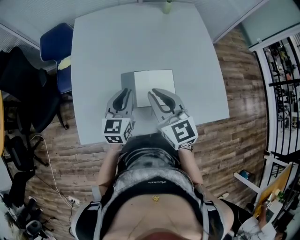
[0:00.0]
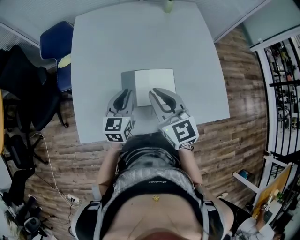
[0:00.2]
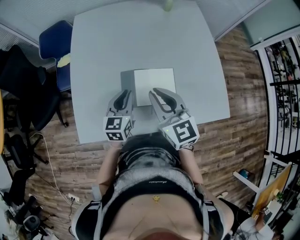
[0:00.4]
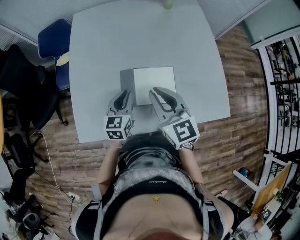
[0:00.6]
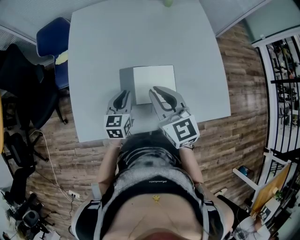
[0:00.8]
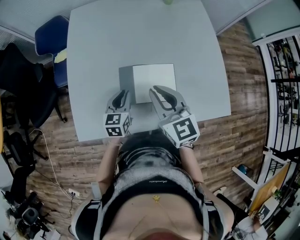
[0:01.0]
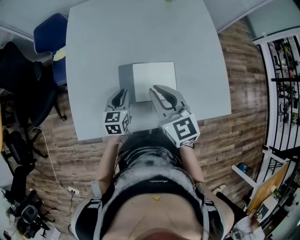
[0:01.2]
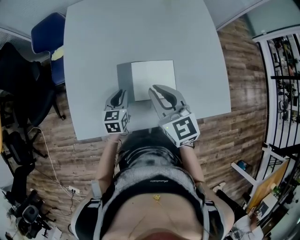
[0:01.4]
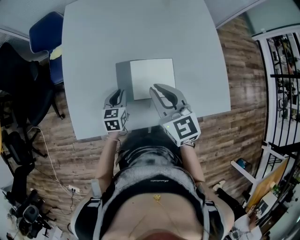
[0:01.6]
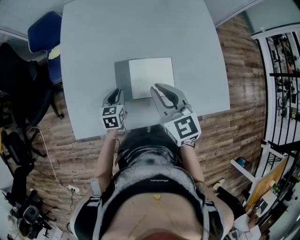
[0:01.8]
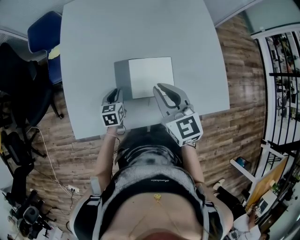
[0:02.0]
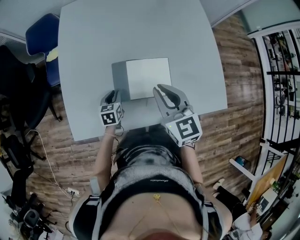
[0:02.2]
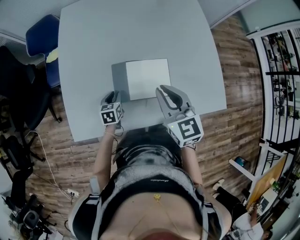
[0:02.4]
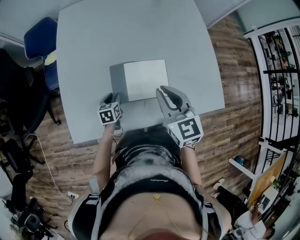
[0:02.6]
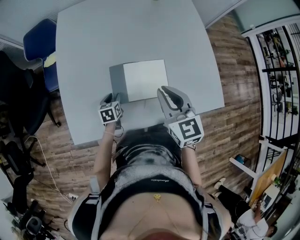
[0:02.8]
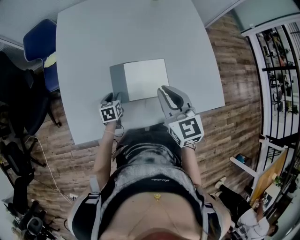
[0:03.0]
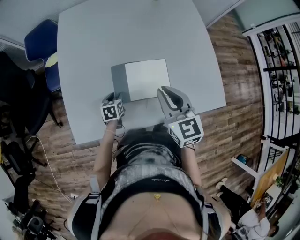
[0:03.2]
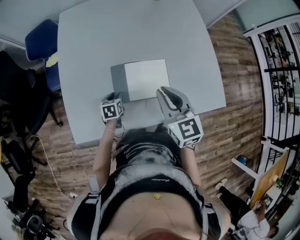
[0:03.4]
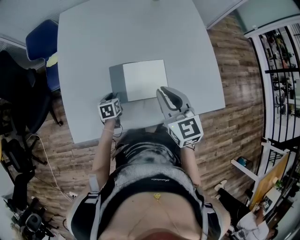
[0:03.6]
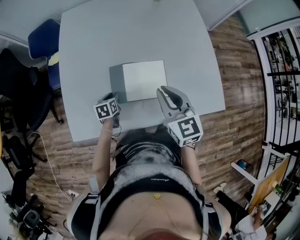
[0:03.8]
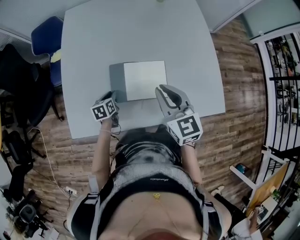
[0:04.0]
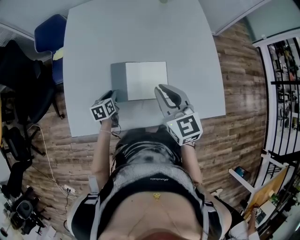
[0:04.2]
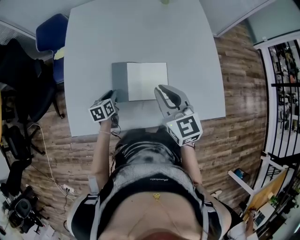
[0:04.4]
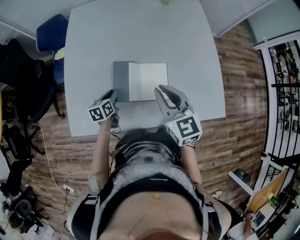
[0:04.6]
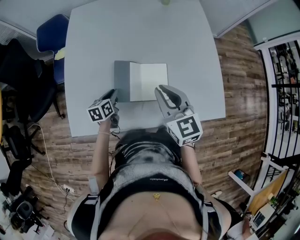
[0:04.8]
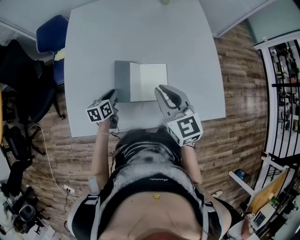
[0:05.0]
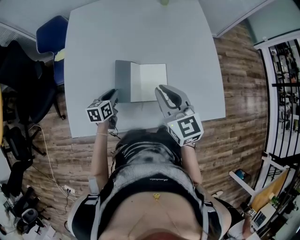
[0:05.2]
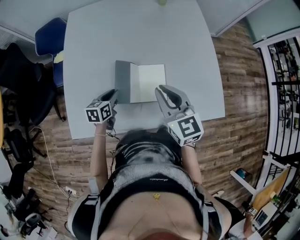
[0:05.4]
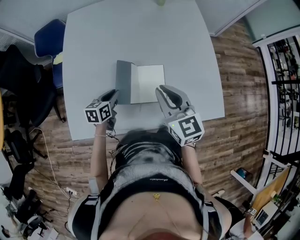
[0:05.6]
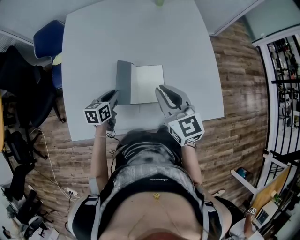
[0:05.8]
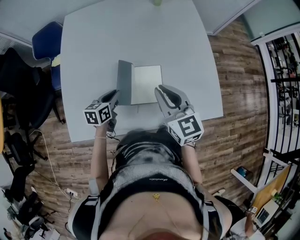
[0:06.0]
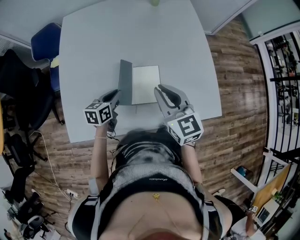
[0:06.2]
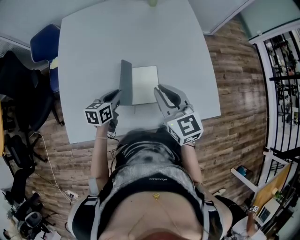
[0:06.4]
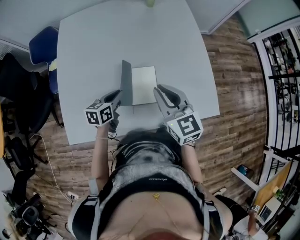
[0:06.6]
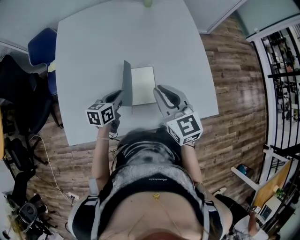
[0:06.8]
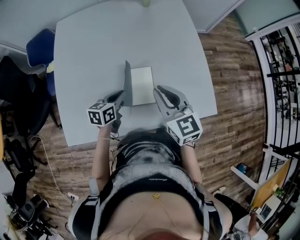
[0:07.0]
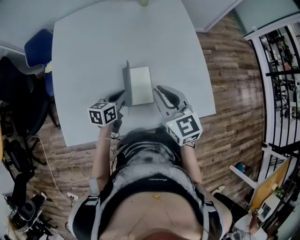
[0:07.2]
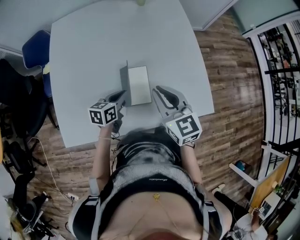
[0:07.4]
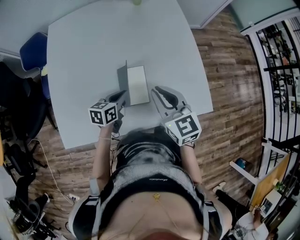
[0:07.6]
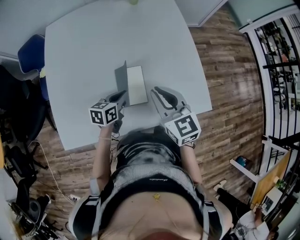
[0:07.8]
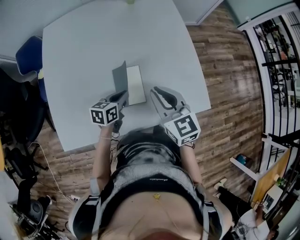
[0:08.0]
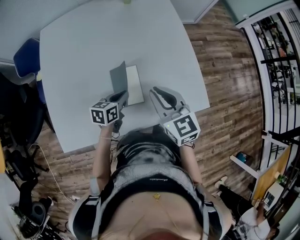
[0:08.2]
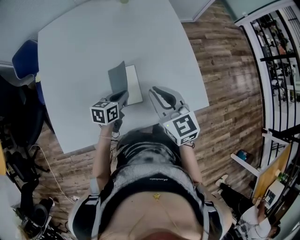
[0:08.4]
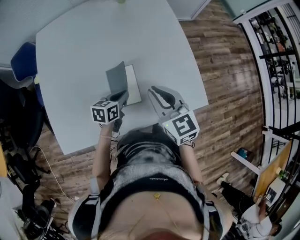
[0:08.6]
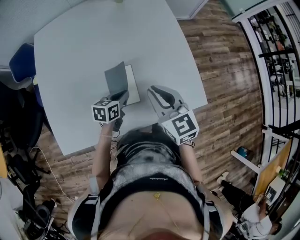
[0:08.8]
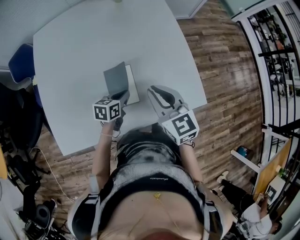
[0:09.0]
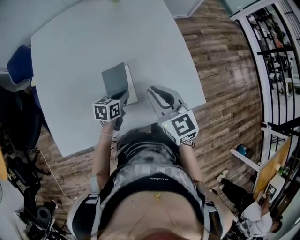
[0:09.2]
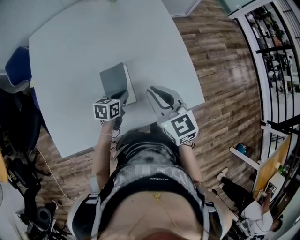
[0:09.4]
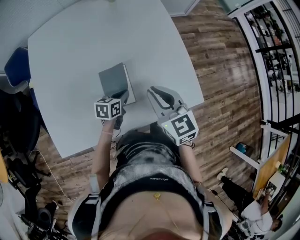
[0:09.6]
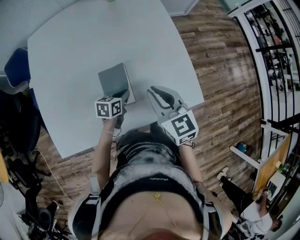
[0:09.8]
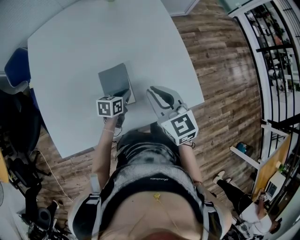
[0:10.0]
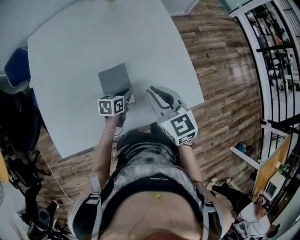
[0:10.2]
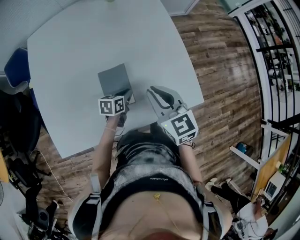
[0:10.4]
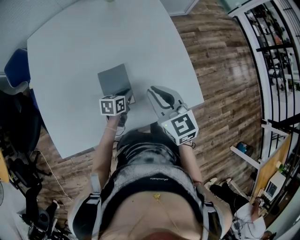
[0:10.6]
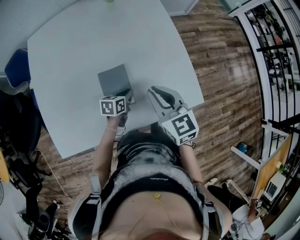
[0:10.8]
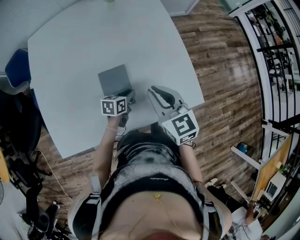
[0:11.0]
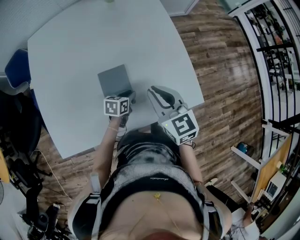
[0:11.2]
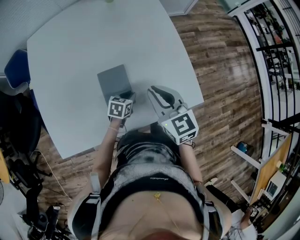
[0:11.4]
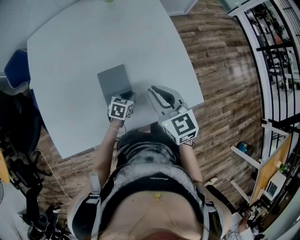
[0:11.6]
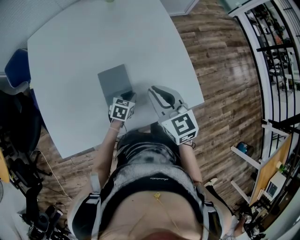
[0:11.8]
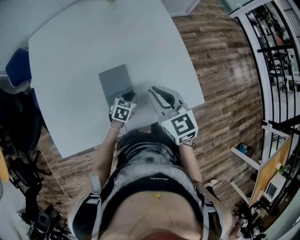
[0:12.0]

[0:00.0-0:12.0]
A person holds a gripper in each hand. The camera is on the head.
0:00.0 to 0:01.6: The right gripper ends up roughly 5 cm from where it was. The left gripper heads downward, covering about 15 cm, and swivels approximately 20 degrees.
0:01.6 to 0:03.0: The left gripper travels downward by some 5 cm, and opens up.
0:03.0 to 0:04.4: The grippers move only a little.
0:04.4 to 0:06.0: The left gripper goes roughly 10 cm upward and to the right.
0:06.0 to 0:07.6: The left gripper moves to the right, approximately 10 cm, while the right gripper moves to the right, roughly 5 cm.
0:07.6 to 0:09.0: The left gripper heads to the right, covering approximately 5 cm.
0:09.0 to 0:10.4: The left gripper shifts some 5 cm downward.
0:10.4 to 0:12.0: The left gripper rotates roughly 30 degrees.

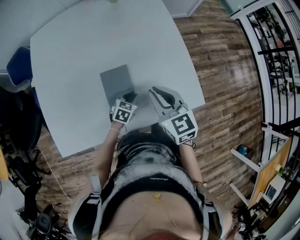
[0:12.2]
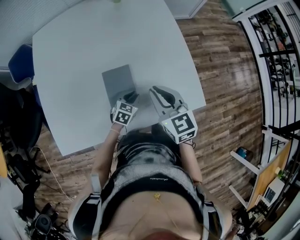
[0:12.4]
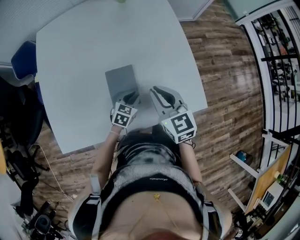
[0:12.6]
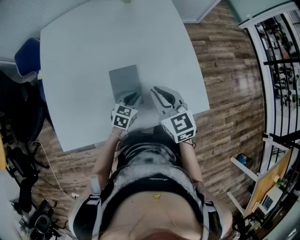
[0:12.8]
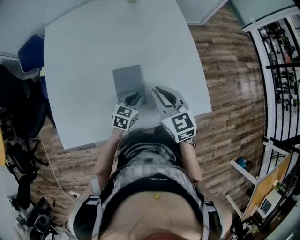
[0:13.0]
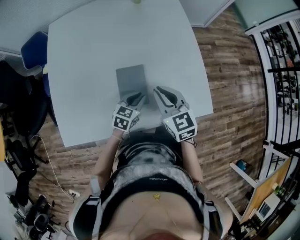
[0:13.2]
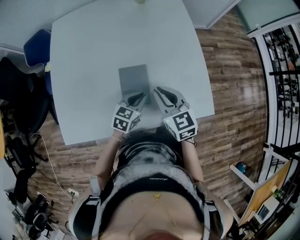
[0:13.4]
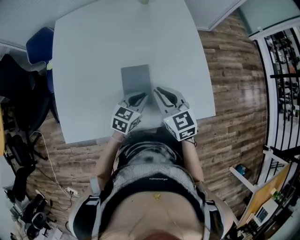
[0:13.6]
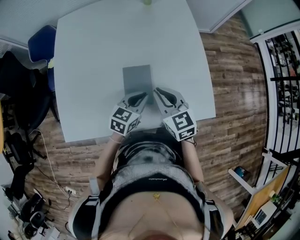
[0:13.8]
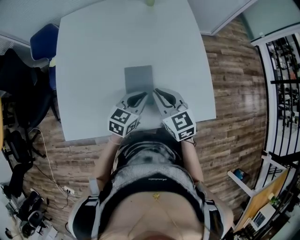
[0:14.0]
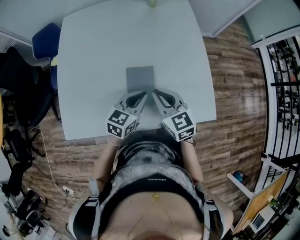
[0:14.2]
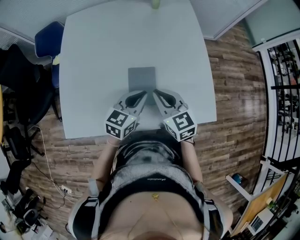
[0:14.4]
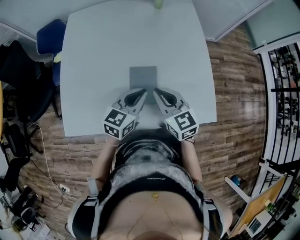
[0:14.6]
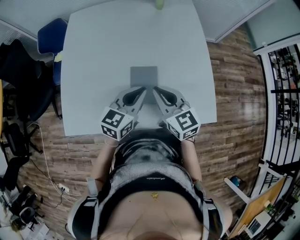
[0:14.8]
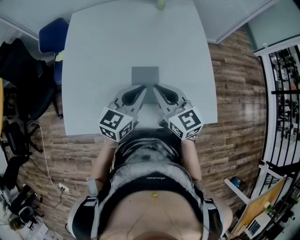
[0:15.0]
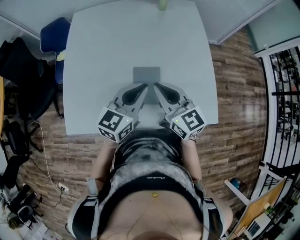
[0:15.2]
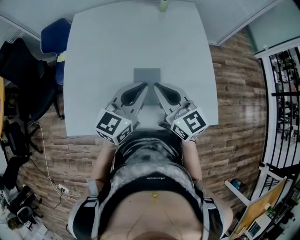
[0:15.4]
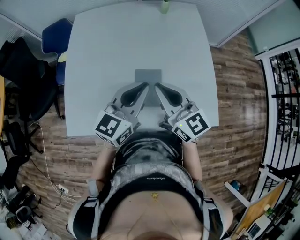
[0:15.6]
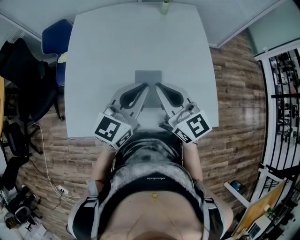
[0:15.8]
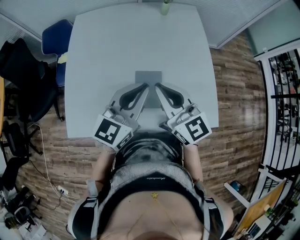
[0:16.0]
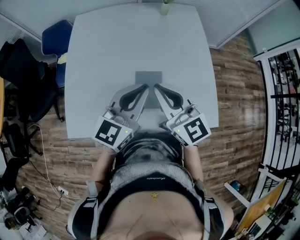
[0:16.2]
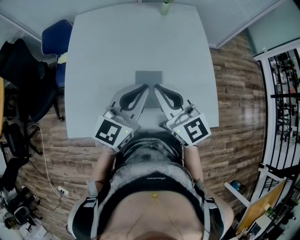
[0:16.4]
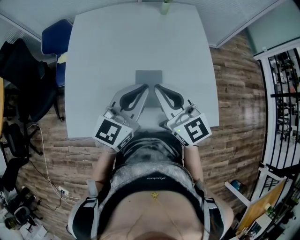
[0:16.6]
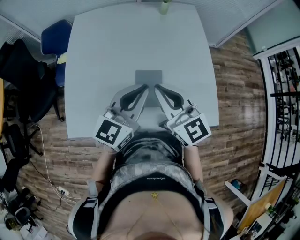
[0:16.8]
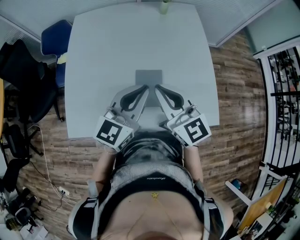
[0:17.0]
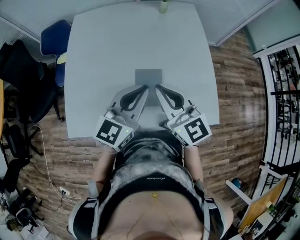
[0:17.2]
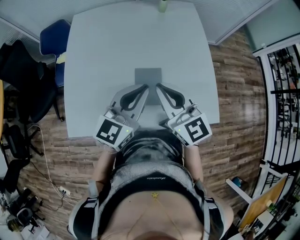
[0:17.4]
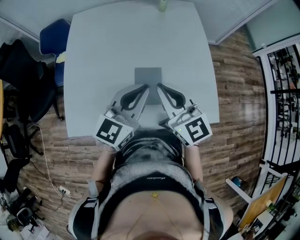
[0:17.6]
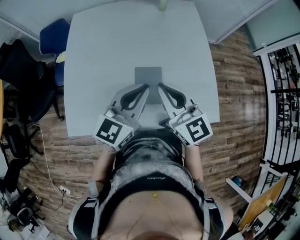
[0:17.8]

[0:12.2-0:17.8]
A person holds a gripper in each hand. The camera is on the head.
0:12.2 to 0:13.6: The right gripper goes approximately 5 cm to the left. Meanwhile the left gripper moves upward, roughly 15 cm.
0:13.6 to 0:15.0: The right gripper heads upward and to the left, covering about 10 cm. Meanwhile the left gripper heads upward, covering approximately 15 cm, and turns by approximately 20 degrees.
0:15.0 to 0:16.4: The two grippers go some 10 cm upward.
0:16.4 to 0:17.8: The grippers stay close to where they were, moving slightly.

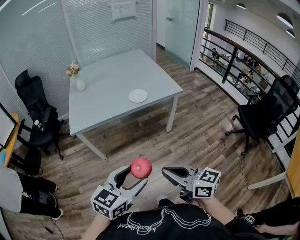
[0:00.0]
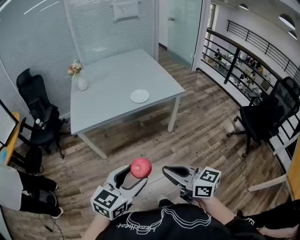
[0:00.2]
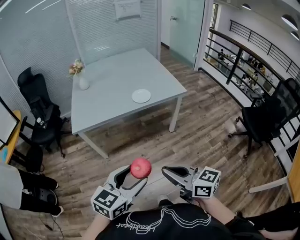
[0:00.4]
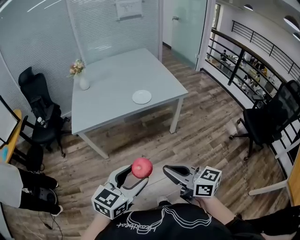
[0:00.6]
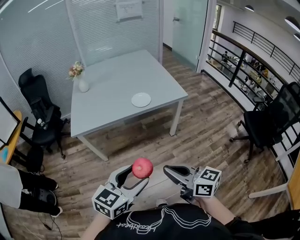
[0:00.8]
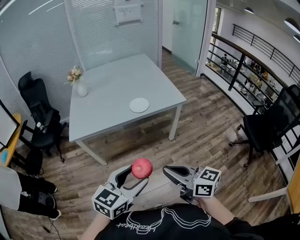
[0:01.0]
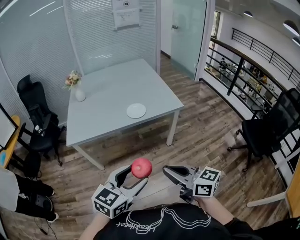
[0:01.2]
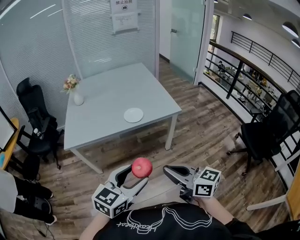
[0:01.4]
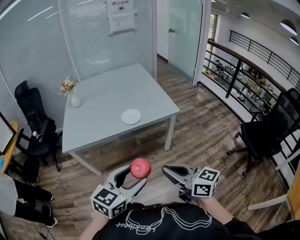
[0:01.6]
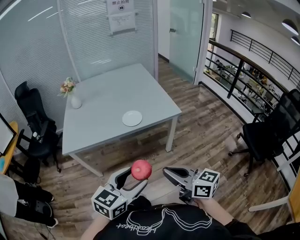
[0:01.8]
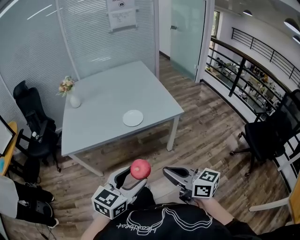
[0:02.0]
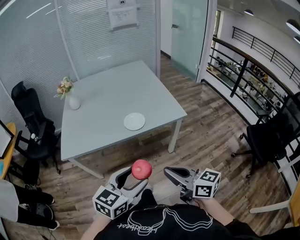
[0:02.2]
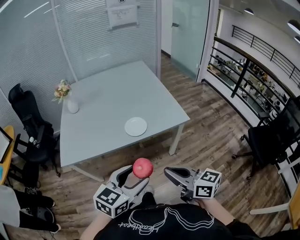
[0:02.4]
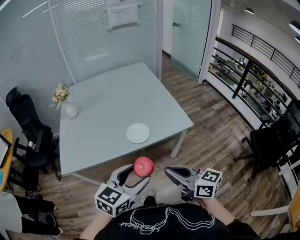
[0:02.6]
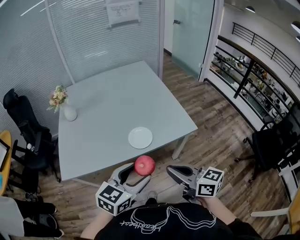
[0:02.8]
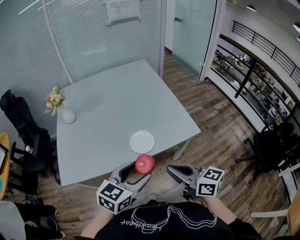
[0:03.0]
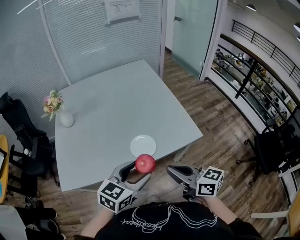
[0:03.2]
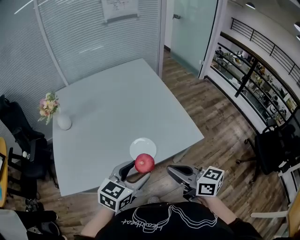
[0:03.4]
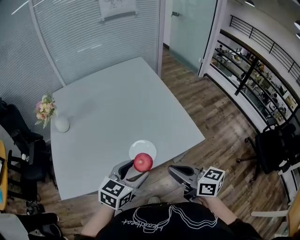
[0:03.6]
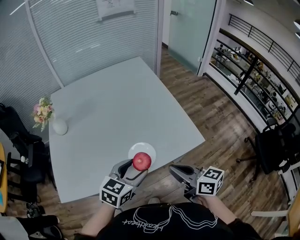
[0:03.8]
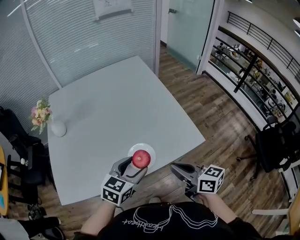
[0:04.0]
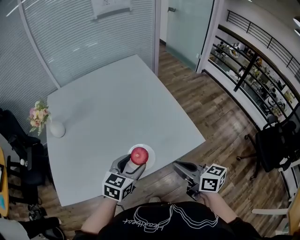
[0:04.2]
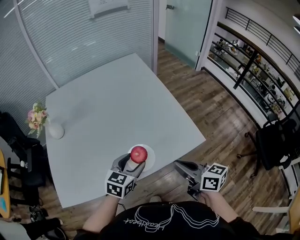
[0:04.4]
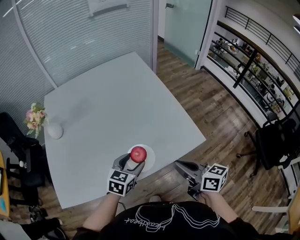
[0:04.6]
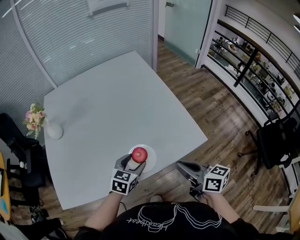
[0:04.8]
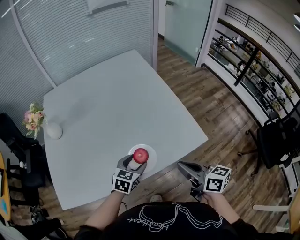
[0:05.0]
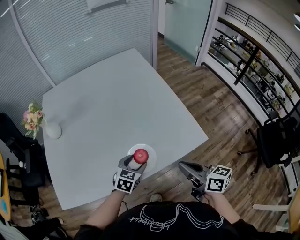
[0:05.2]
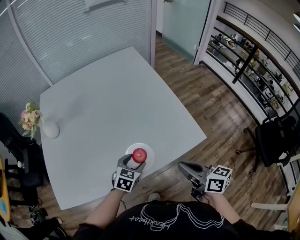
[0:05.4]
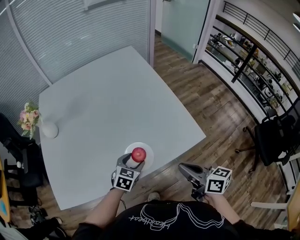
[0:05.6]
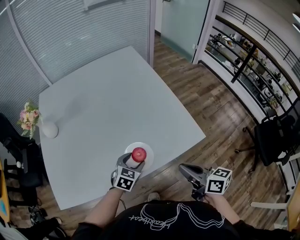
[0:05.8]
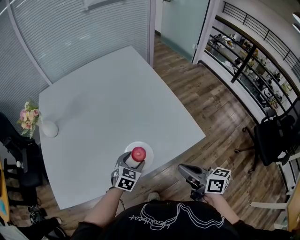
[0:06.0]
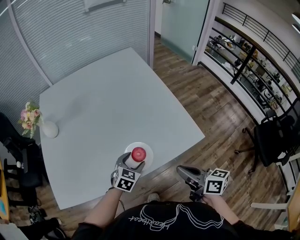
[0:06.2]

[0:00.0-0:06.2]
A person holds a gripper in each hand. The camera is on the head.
0:00.0 to 0:01.6: The grippers both shift forward and to the right by some 15 cm.
0:01.6 to 0:03.2: The grippers both shift forward by some 35 cm.
0:03.2 to 0:04.6: The left gripper heads forward and downward, covering roughly 20 cm. Meanwhile the right gripper moves forward, downward and to the right, roughly 15 cm.
0:04.6 to 0:06.2: The left gripper travels downward by some 10 cm.
